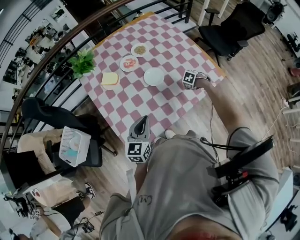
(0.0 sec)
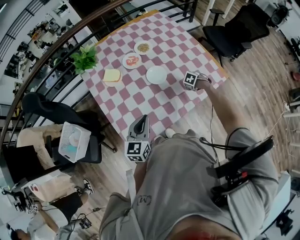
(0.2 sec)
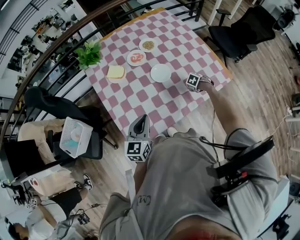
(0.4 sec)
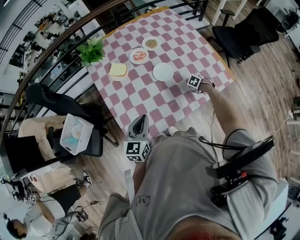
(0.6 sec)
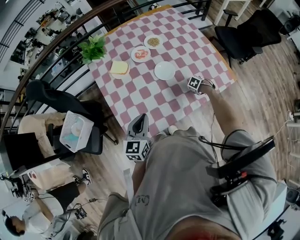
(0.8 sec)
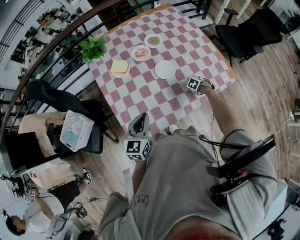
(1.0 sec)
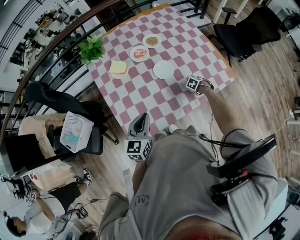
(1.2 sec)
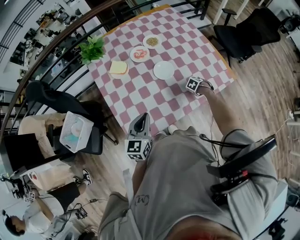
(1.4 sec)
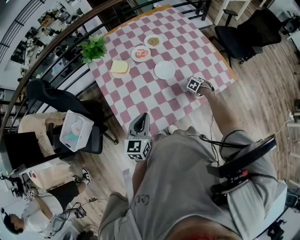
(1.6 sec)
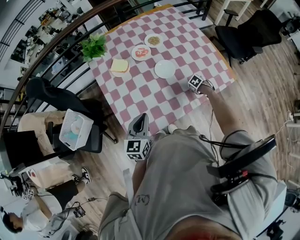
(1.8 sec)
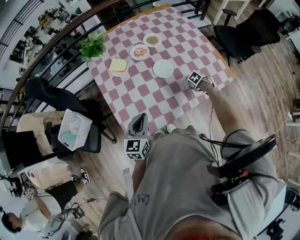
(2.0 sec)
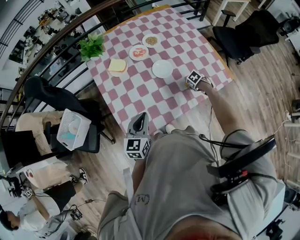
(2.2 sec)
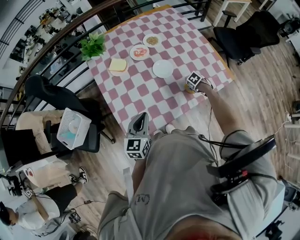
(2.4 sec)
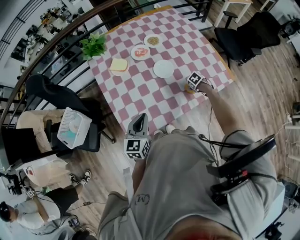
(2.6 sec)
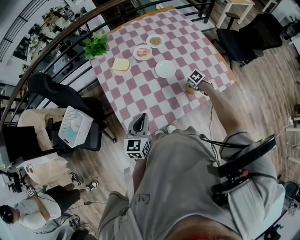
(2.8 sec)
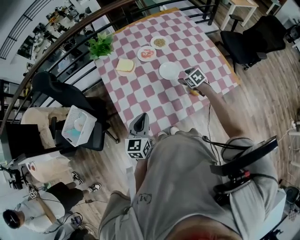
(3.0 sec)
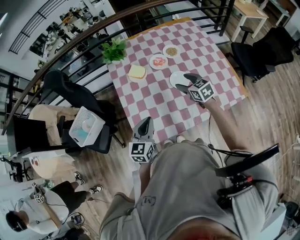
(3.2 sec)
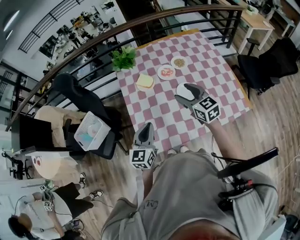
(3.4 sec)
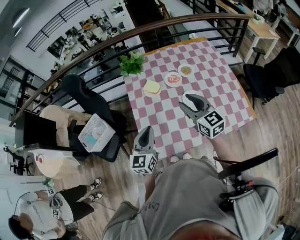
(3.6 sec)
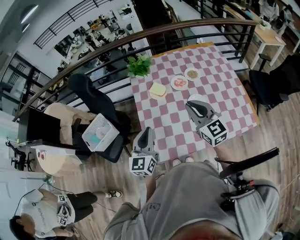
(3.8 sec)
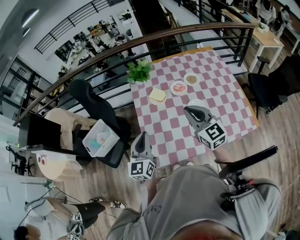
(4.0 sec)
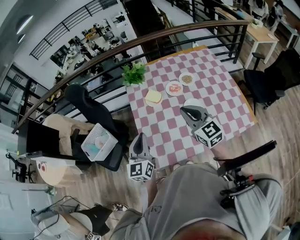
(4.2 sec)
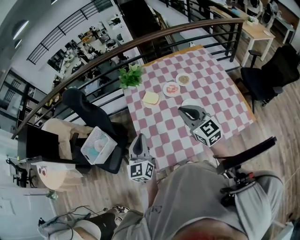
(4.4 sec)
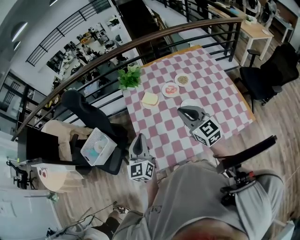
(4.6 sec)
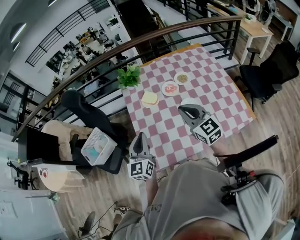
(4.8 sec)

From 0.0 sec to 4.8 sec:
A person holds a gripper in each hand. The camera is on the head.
From 0.0 sec to 1.6 sec: The right gripper heads downward, covering roughly 10 cm.
From 1.6 sec to 3.2 sec: The right gripper shifts about 30 cm upward, and angles its fingers upward, by approximately 50 degrees.
From 3.2 sec to 4.8 sec: The left gripper shifts some 10 cm upward and to the left, and rotates some 20 degrees. The right gripper is displaced upward and to the left by some 20 cm, swivels some 30 degrees, and closes.

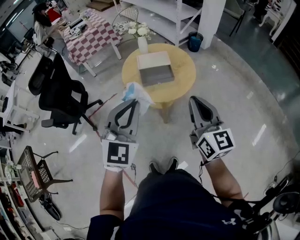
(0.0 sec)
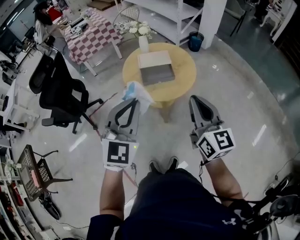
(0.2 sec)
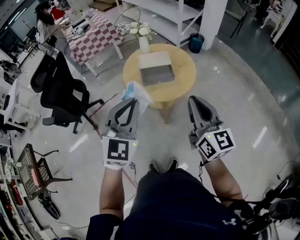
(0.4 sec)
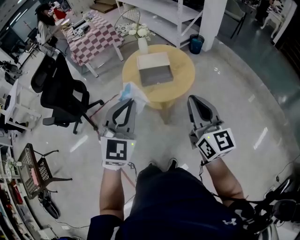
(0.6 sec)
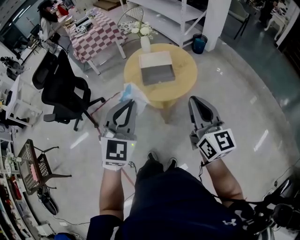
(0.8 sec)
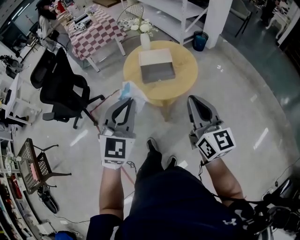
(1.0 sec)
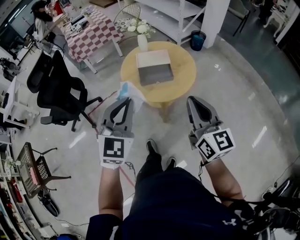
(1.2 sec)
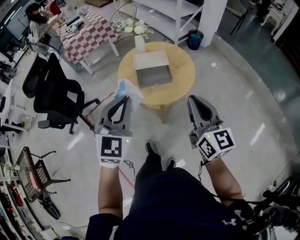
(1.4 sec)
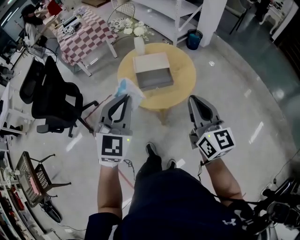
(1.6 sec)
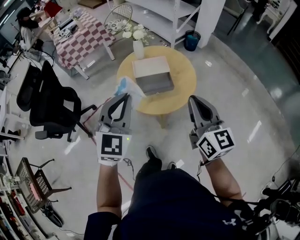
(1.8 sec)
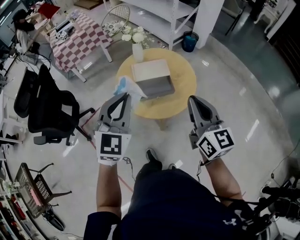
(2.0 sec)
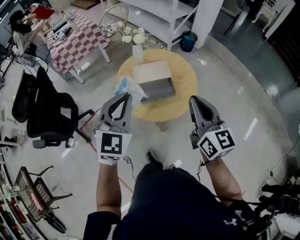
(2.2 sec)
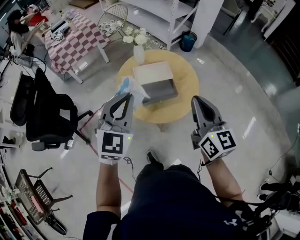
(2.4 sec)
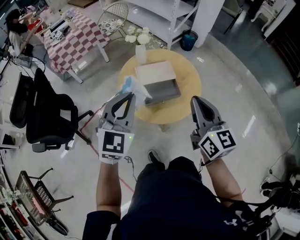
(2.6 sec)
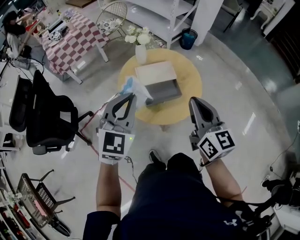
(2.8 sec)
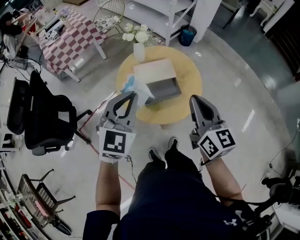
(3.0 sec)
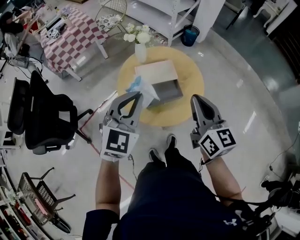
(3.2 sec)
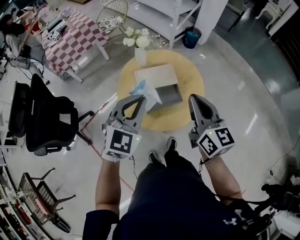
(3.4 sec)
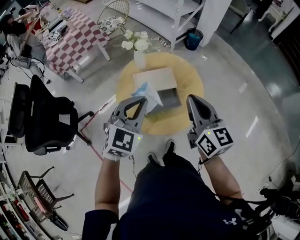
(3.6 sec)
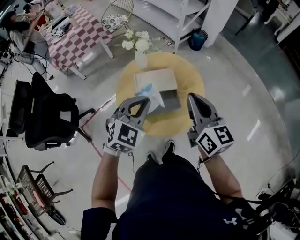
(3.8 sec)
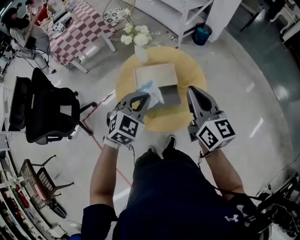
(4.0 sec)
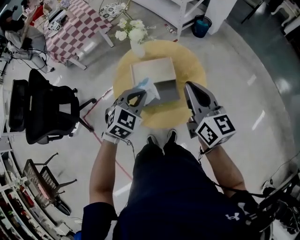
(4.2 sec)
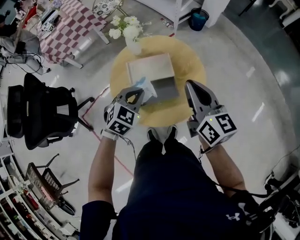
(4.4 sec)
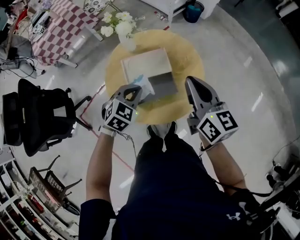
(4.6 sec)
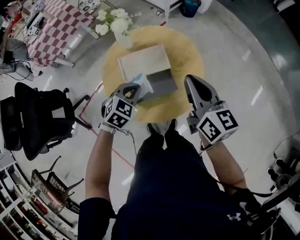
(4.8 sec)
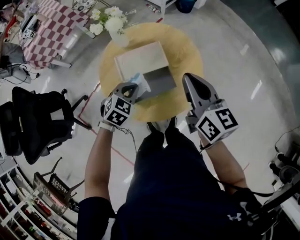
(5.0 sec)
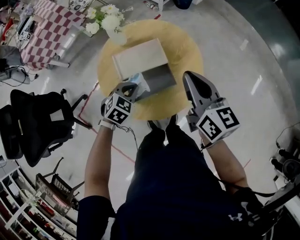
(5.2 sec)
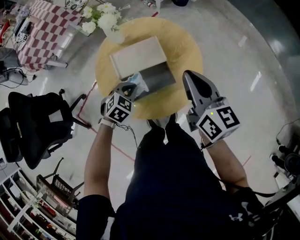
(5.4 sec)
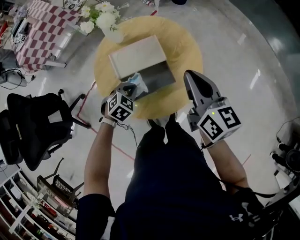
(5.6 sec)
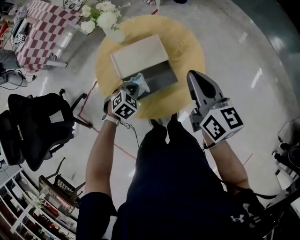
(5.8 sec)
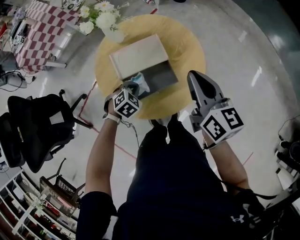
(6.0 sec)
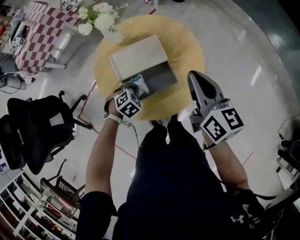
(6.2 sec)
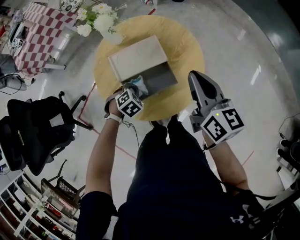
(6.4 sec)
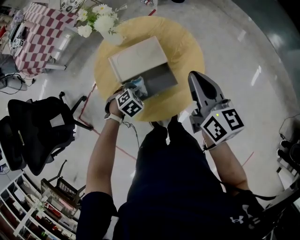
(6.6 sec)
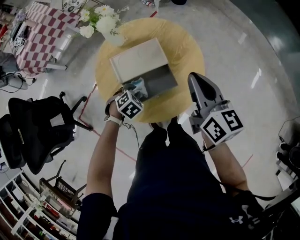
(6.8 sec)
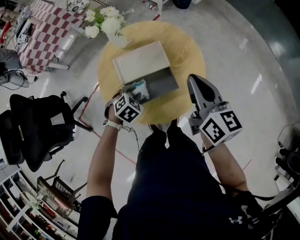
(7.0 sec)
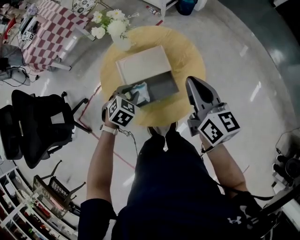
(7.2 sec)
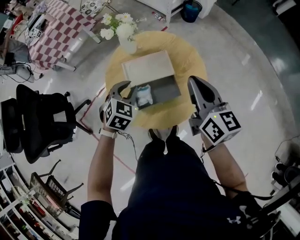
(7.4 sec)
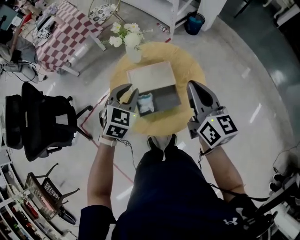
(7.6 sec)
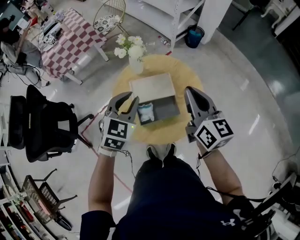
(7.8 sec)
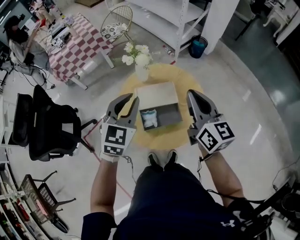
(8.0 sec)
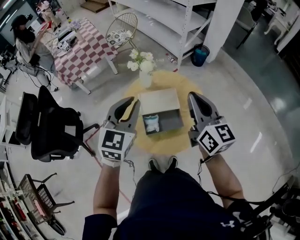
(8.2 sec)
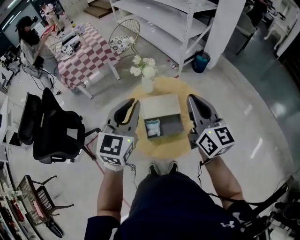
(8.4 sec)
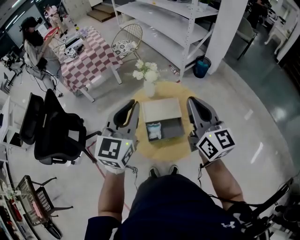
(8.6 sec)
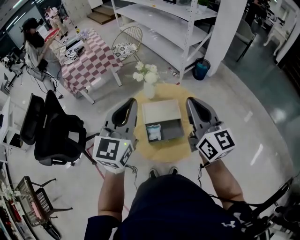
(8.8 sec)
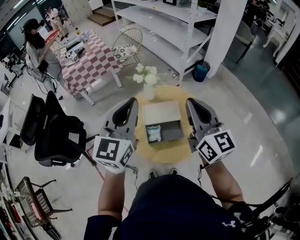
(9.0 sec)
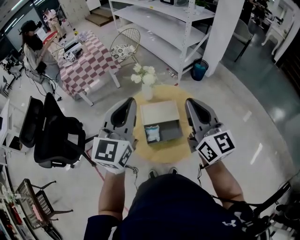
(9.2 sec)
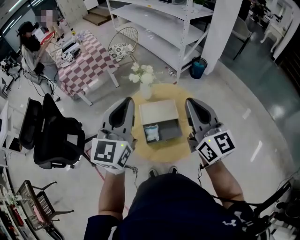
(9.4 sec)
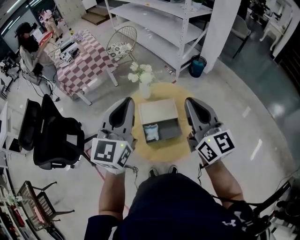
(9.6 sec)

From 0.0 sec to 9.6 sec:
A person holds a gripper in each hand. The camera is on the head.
From 0.0 sec to 1.6 sec: Both grippers move forward, approximately 10 cm.
From 1.6 sec to 3.2 sec: The right gripper shifts approximately 15 cm forward and to the left, while the left gripper moves forward, approximately 15 cm.
From 3.2 sec to 4.8 sec: The right gripper goes about 15 cm forward and downward; the left gripper shifts about 25 cm downward and forward, and tips its fingers downward by about 30 degrees.
From 4.8 sec to 6.4 sec: The left gripper moves downward, some 15 cm, and rotates approximately 30 degrees.
From 6.4 sec to 8.0 sec: The right gripper is displaced upward by roughly 10 cm; the left gripper moves upward, about 35 cm, and tilts its fingers approximately 50 degrees upward.
From 8.0 sec to 9.6 sec: The left gripper heads upward, covering approximately 15 cm, and turns by some 30 degrees. Meanwhile the right gripper shifts approximately 10 cm upward.

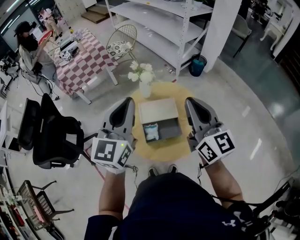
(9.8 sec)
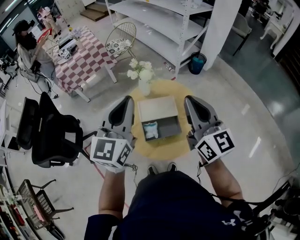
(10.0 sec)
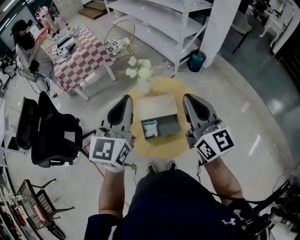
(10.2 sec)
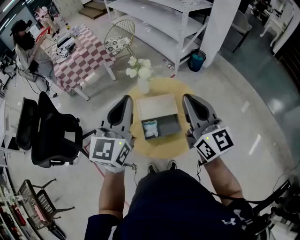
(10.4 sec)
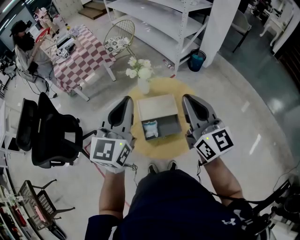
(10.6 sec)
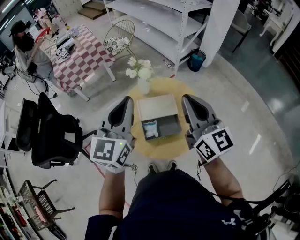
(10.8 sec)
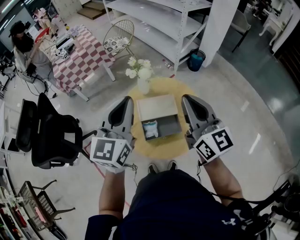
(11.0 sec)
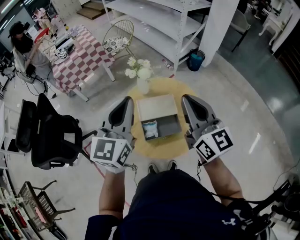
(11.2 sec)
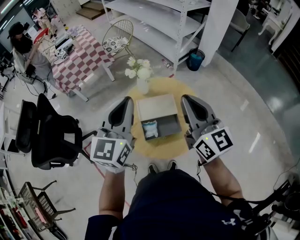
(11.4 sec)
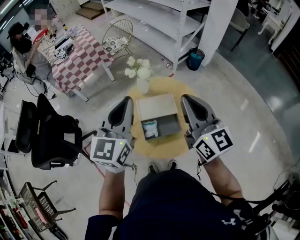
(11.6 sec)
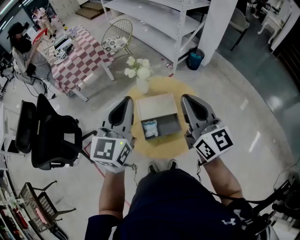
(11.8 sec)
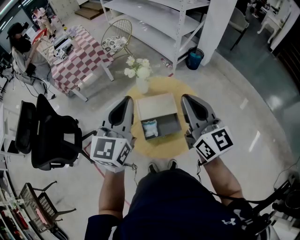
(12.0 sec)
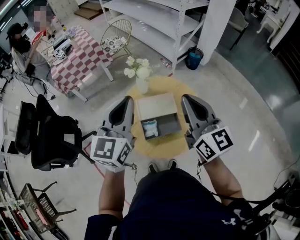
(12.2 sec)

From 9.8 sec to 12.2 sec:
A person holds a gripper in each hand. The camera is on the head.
From 9.8 sec to 11.0 sec: The grippers make only small movements.
From 11.0 sec to 12.2 sec: Both grippers stay about where they are.

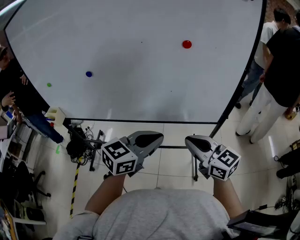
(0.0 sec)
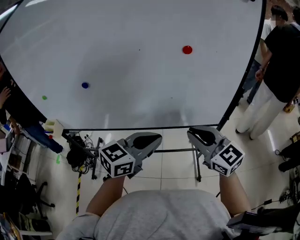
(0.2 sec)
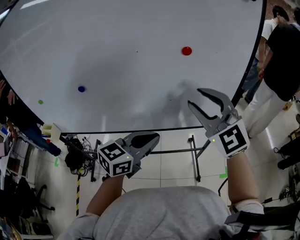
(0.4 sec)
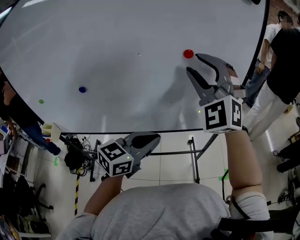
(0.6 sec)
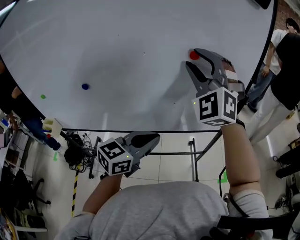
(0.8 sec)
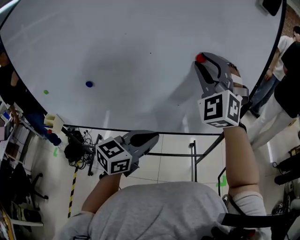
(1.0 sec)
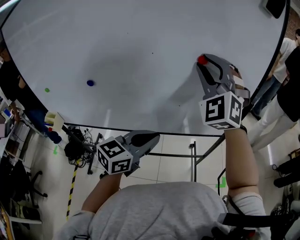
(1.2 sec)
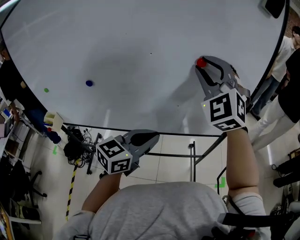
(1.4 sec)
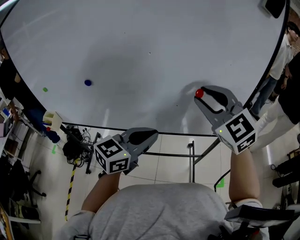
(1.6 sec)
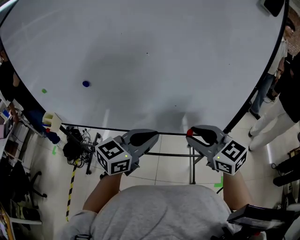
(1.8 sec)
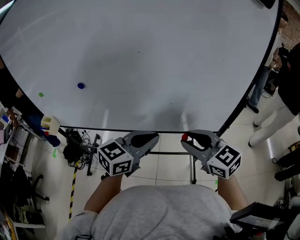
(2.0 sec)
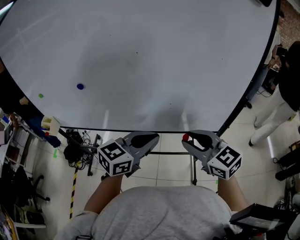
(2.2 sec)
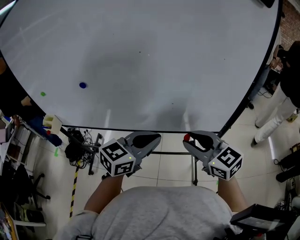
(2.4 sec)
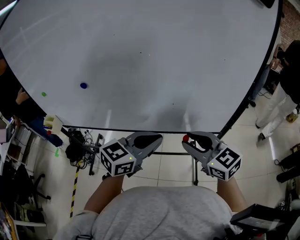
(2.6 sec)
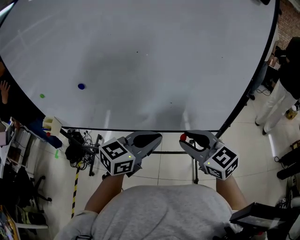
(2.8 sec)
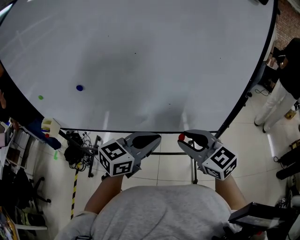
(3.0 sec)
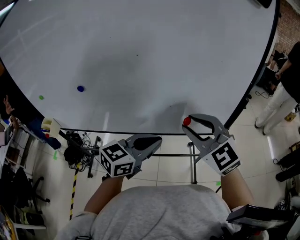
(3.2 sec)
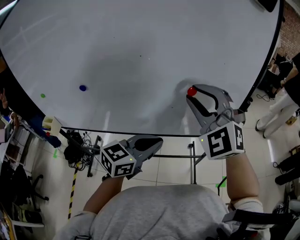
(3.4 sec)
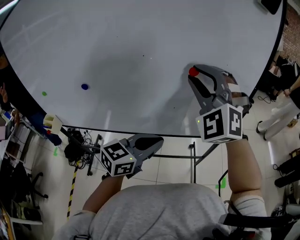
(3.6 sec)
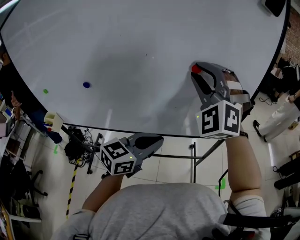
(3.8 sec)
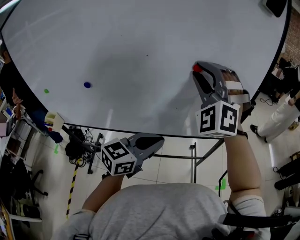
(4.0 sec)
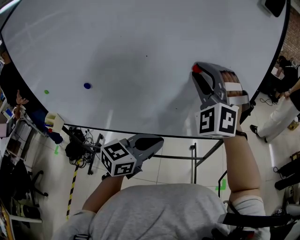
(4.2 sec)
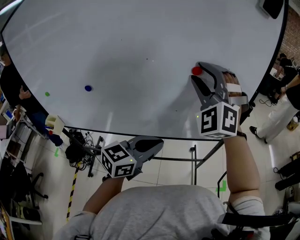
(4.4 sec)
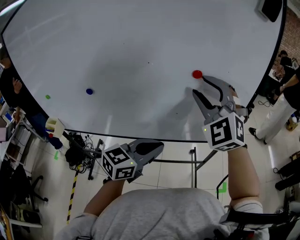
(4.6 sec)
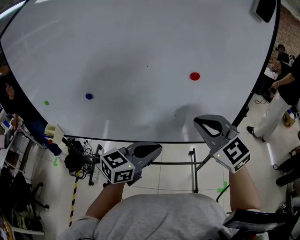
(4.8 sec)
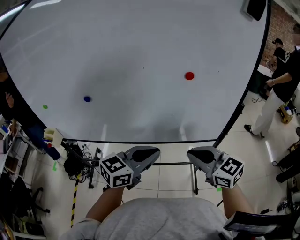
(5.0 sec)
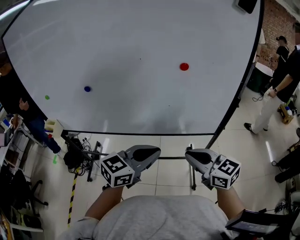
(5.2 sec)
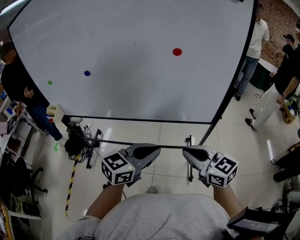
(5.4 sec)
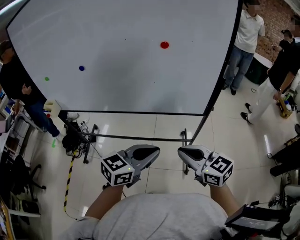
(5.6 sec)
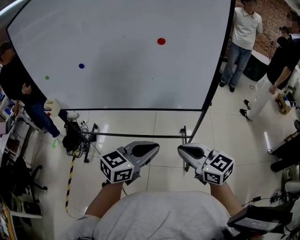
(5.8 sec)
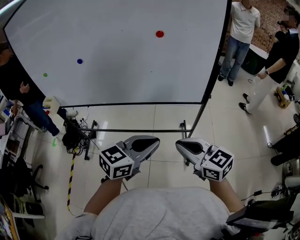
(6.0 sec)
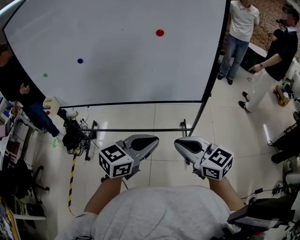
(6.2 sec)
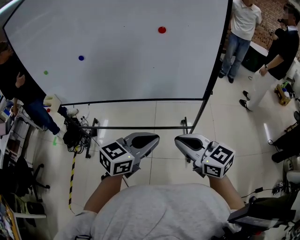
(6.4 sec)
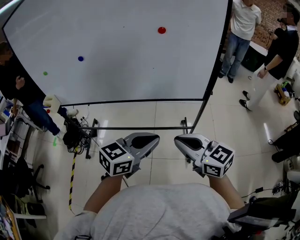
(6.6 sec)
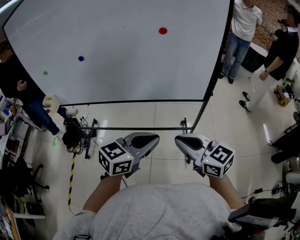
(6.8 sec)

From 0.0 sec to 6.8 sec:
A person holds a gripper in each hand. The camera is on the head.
From 0.0 sec to 1.4 sec: The left gripper goes some 5 cm forward. The right gripper goes approximately 30 cm upward and forward, rotates around the line of its fingers by about 70 degrees, counterclockwise from behind, and opens.
From 1.4 sec to 2.8 sec: The right gripper goes about 25 cm downward and backward, and rotates around the line of its fingers by about 50 degrees, clockwise from behind.
From 2.8 sec to 4.0 sec: The right gripper heads upward and forward, covering roughly 25 cm, and rotates around the line of its fingers by approximately 70 degrees, counterclockwise from behind.
From 4.0 sec to 5.4 sec: The left gripper is displaced backward and to the right by approximately 15 cm, while the right gripper heads backward, downward and to the right, covering roughly 35 cm, rotates around the line of its fingers by roughly 80 degrees, clockwise from behind, and closes up.
From 5.4 sec to 6.8 sec: The two grippers go approximately 5 cm backward.
